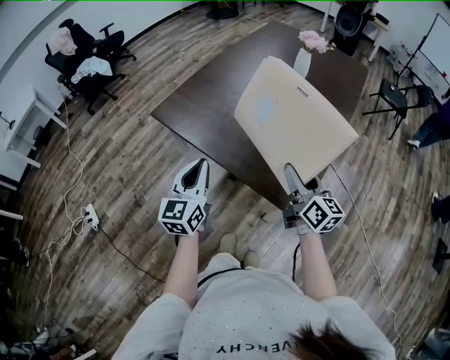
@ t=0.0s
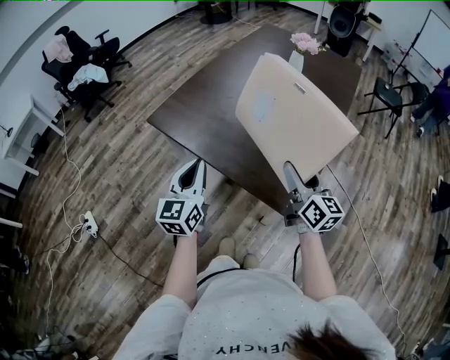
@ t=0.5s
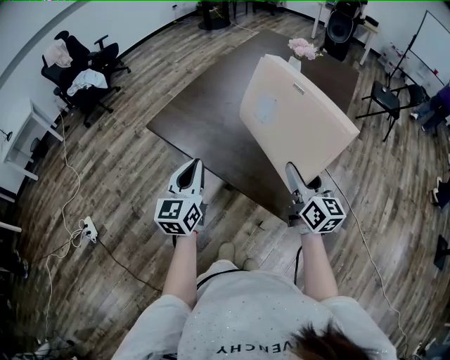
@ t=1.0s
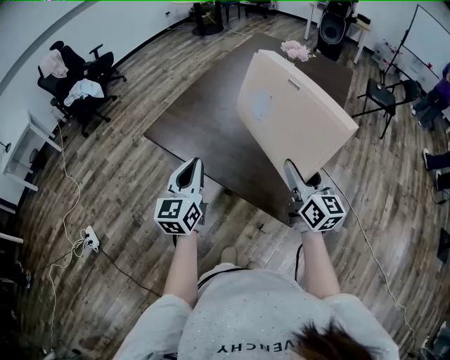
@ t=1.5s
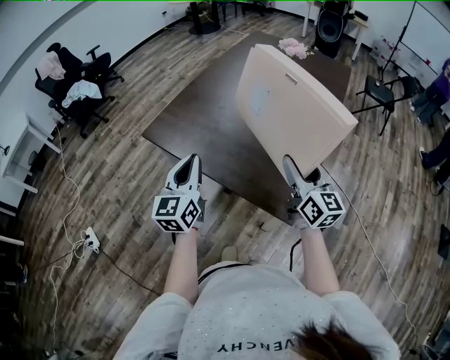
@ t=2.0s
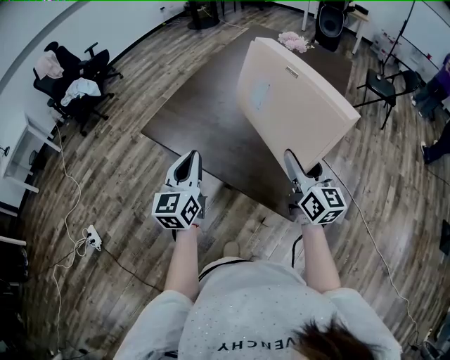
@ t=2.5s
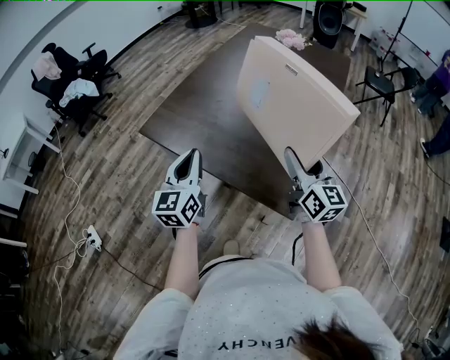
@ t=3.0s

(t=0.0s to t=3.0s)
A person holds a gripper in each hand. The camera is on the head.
t=0.0s - t=1.5s: The right gripper shifts some 5 cm upward.
t=1.5s - t=3.0s: The grippers stay close to where they were, moving slightly.

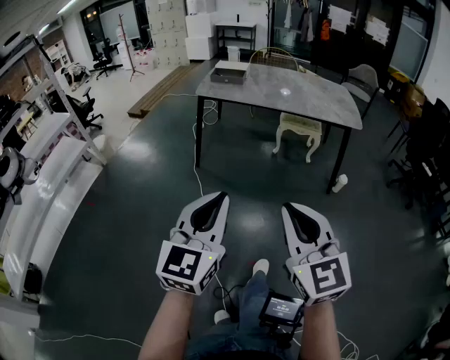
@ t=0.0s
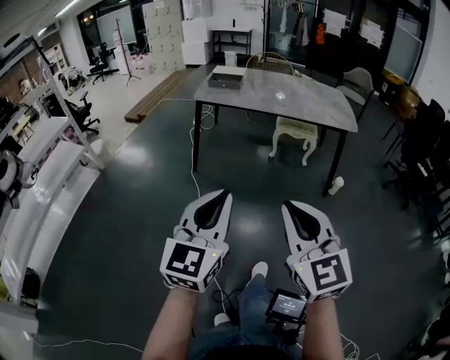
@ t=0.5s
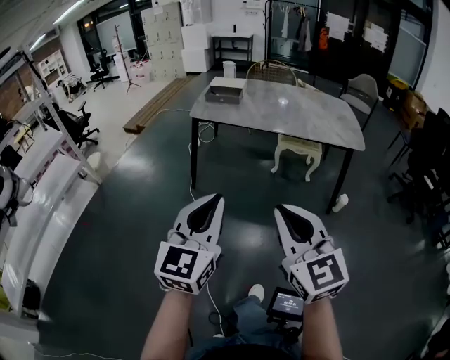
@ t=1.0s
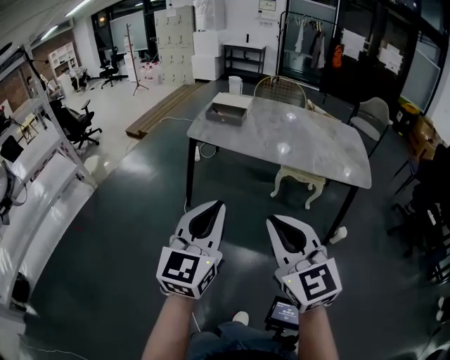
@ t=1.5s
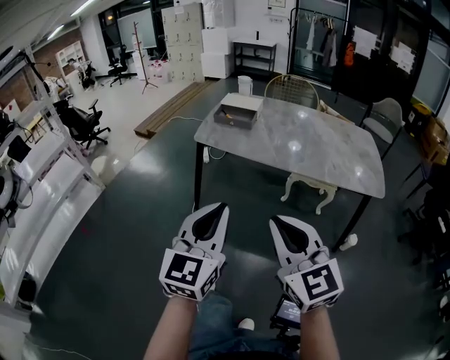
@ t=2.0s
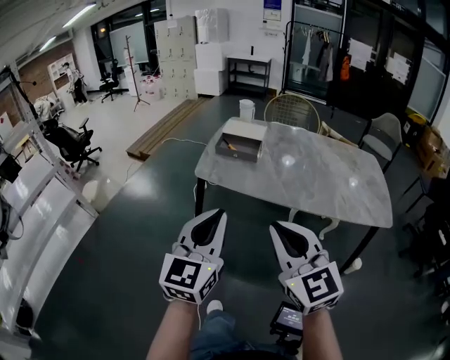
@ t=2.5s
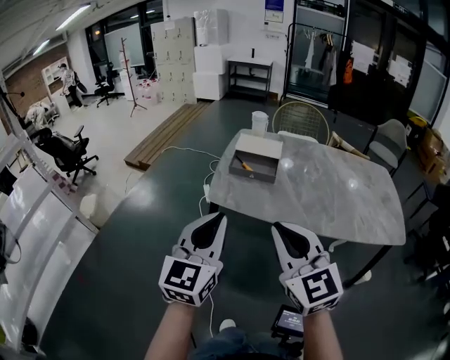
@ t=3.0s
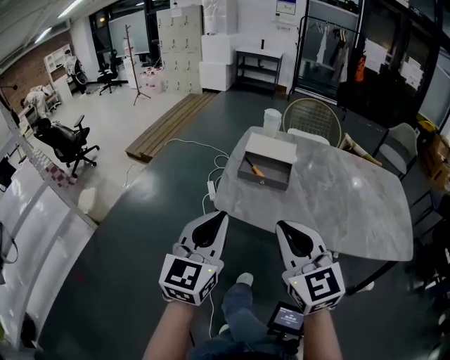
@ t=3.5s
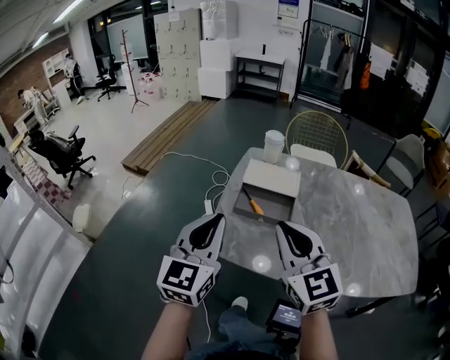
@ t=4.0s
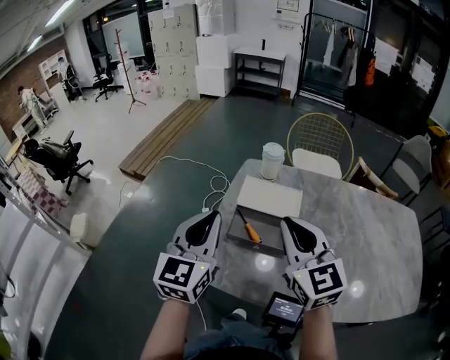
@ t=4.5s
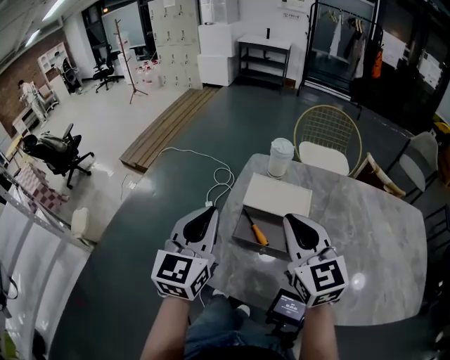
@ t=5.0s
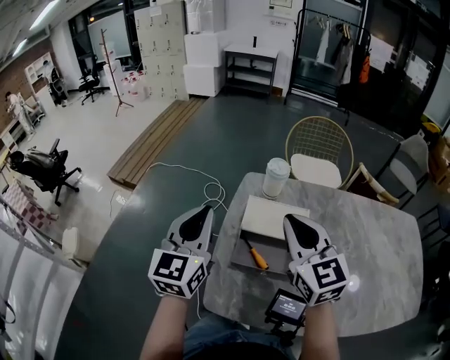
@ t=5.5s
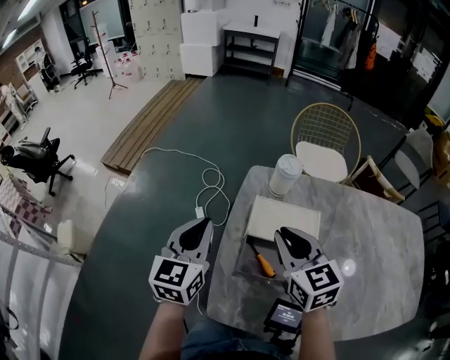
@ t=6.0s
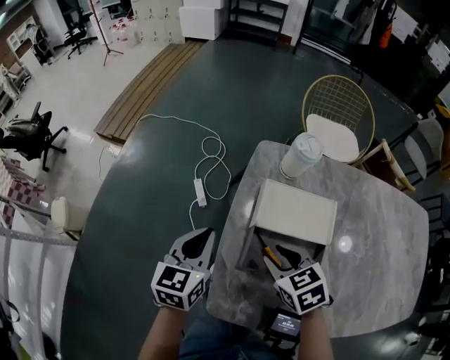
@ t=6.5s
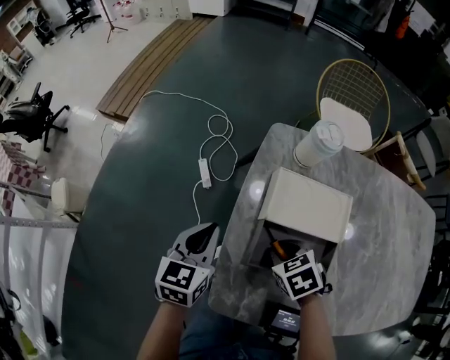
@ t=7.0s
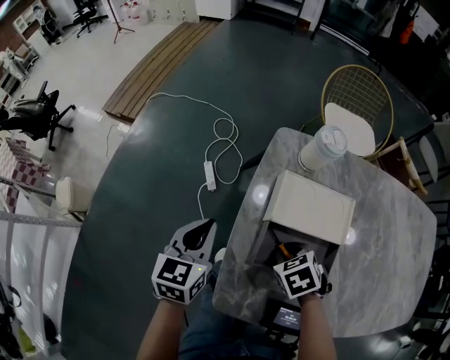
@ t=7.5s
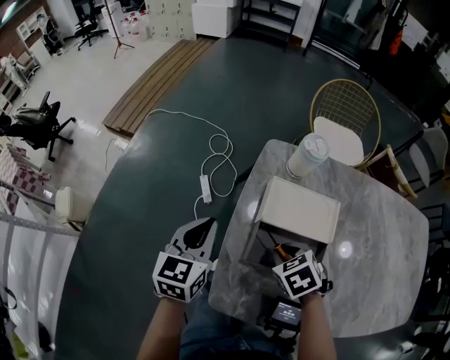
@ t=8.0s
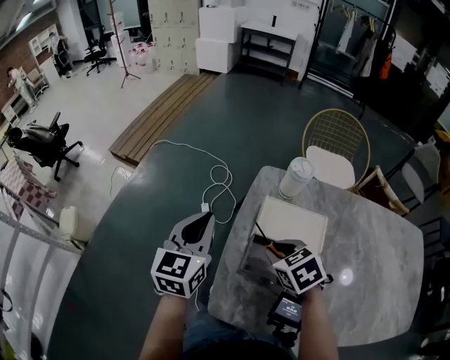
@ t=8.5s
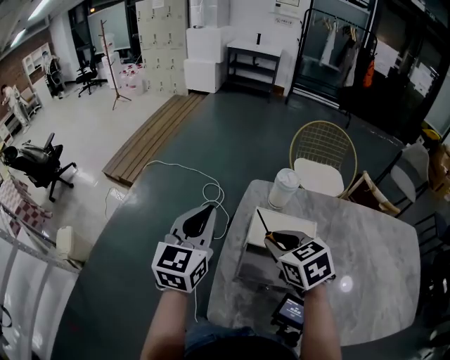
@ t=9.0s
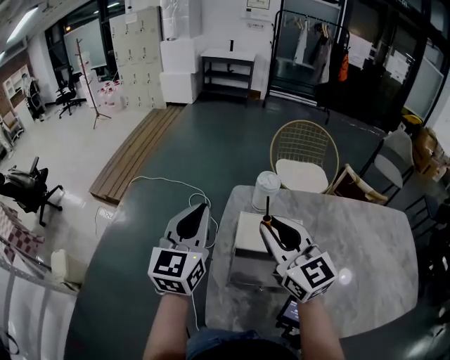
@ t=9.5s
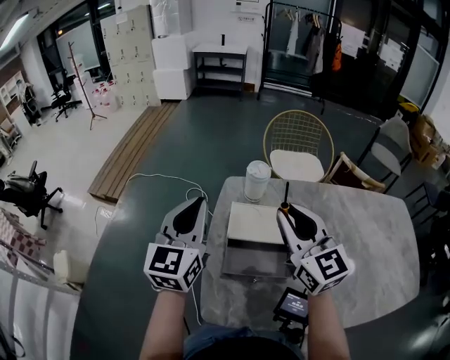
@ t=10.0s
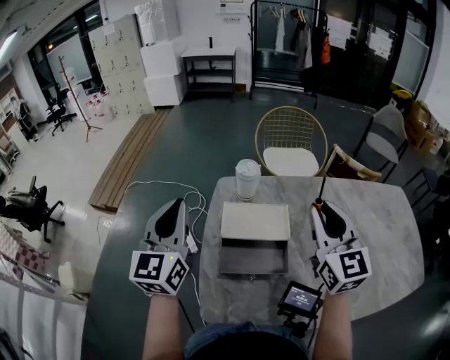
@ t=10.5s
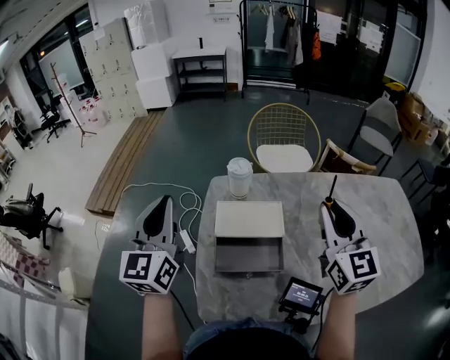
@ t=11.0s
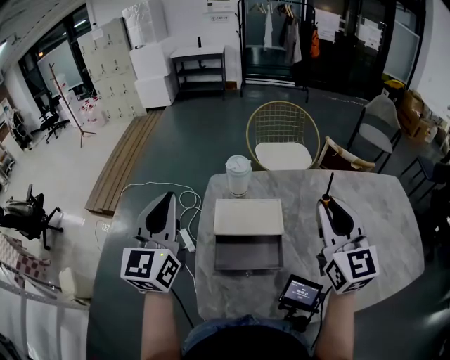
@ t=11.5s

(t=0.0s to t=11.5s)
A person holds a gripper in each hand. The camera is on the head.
t=0.0s - t=2.0s: Both grippers travel together forward, about 30 cm.
t=2.0s - t=4.0s: The pair of grippers is taken forward, approximately 50 cm.
t=4.0s - t=6.0s: The two grippers go approximately 25 cm forward. The right gripper turns by some 20 degrees.
t=6.0s - t=7.5s: The right gripper moves downward, about 20 cm, and tilts its fingers some 50 degrees downward. The left gripper is displaced downward by some 10 cm.
t=7.5s - t=9.5s: Both grippers travel together upward, roughly 25 cm. The right gripper tilts its fingers about 70 degrees upward. The left gripper changes its angle by about 30 degrees.
t=9.5s - t=11.5s: The left gripper ends up some 5 cm from where it was. Meanwhile the right gripper shifts approximately 20 cm to the right, and turns by approximately 30 degrees.

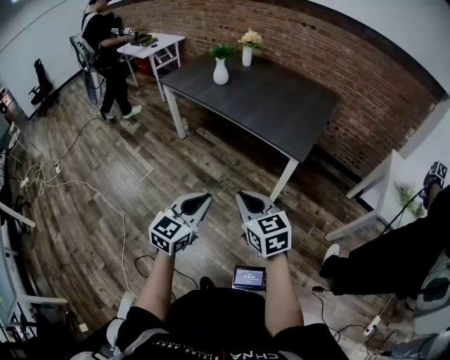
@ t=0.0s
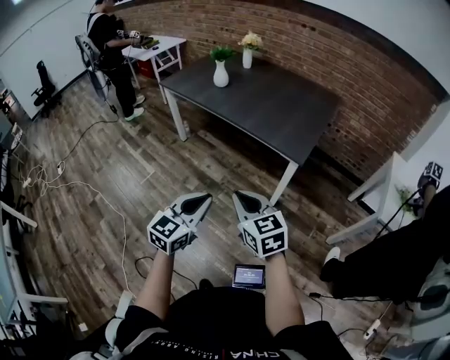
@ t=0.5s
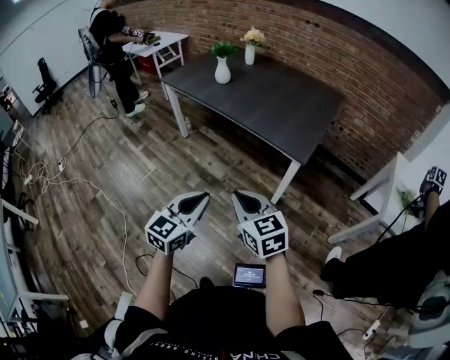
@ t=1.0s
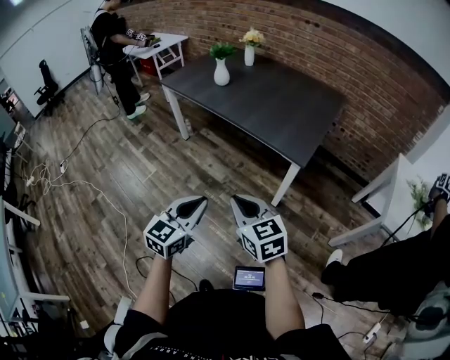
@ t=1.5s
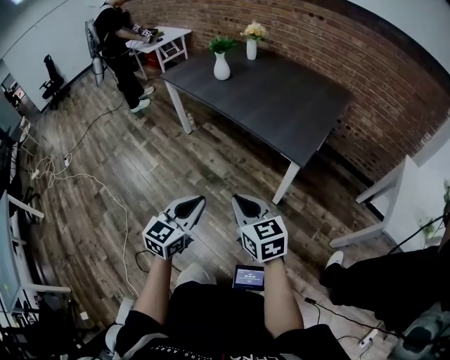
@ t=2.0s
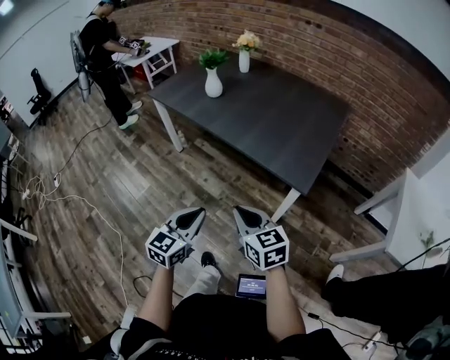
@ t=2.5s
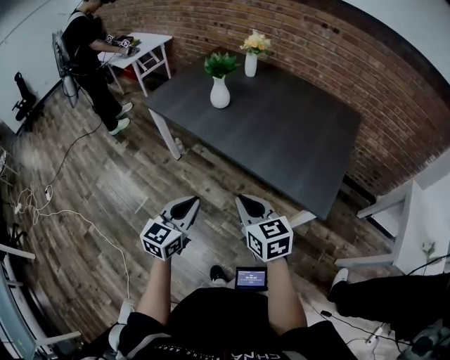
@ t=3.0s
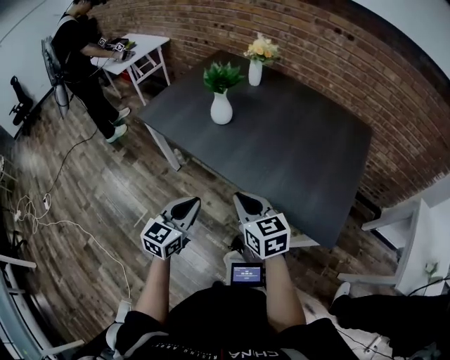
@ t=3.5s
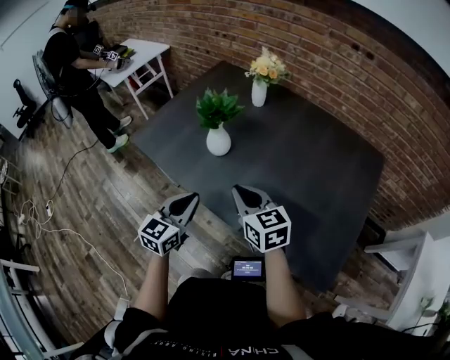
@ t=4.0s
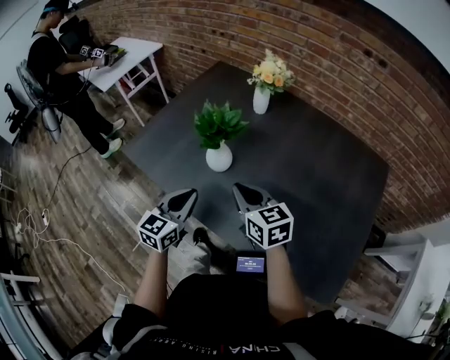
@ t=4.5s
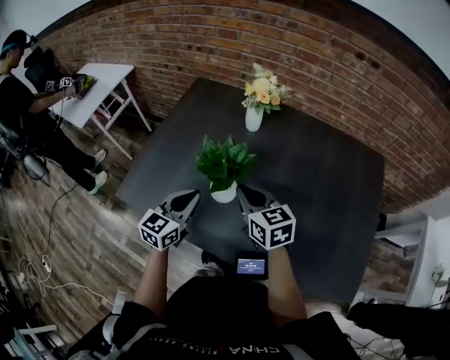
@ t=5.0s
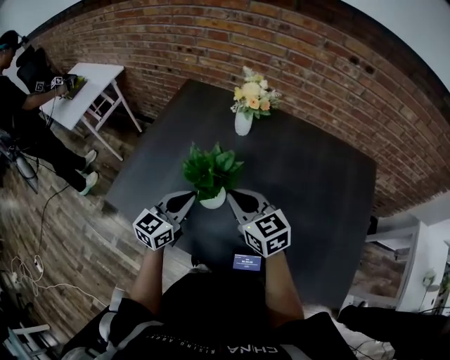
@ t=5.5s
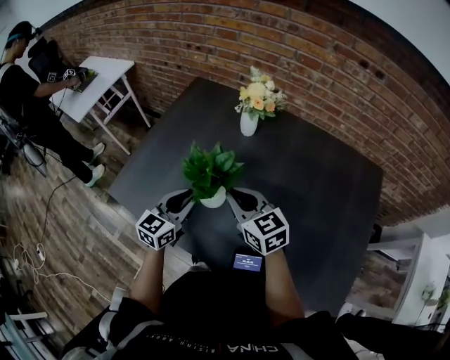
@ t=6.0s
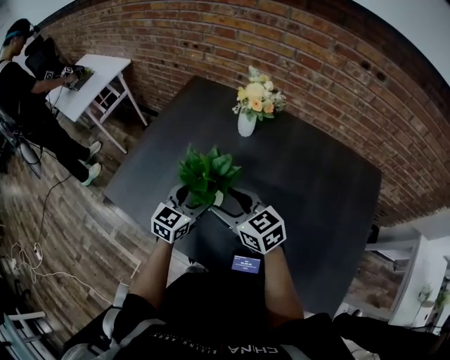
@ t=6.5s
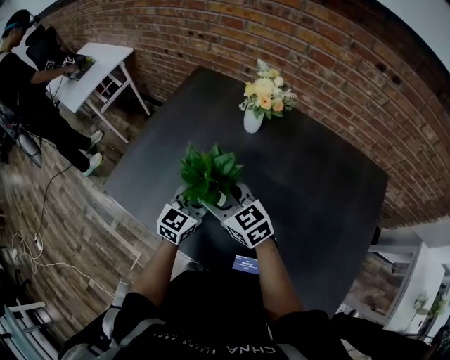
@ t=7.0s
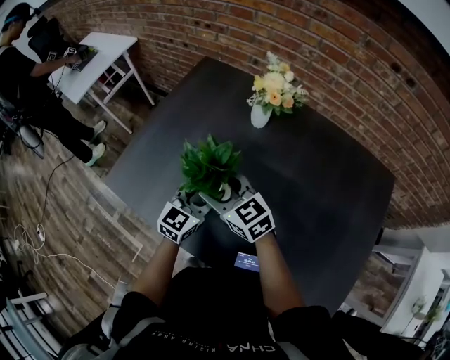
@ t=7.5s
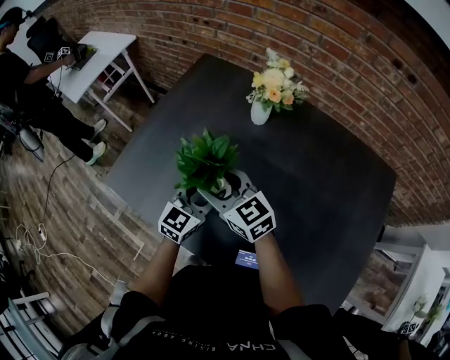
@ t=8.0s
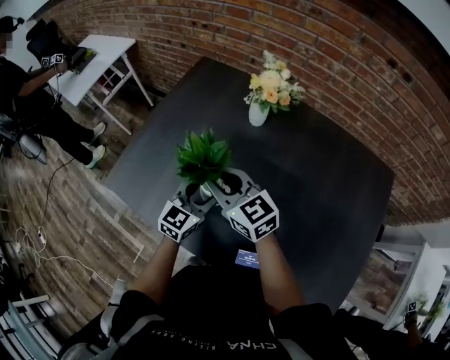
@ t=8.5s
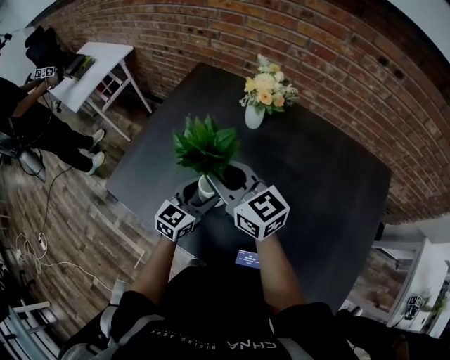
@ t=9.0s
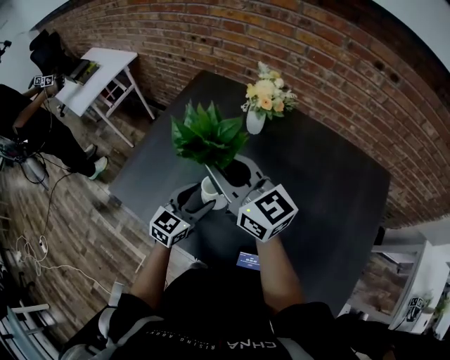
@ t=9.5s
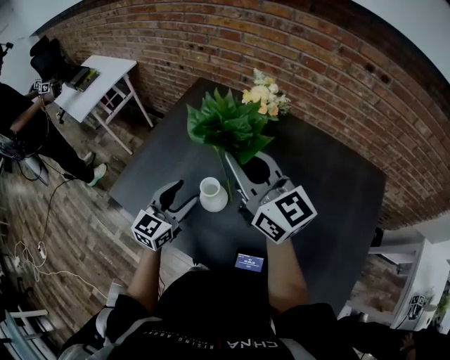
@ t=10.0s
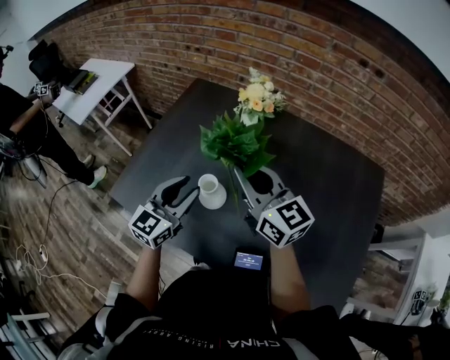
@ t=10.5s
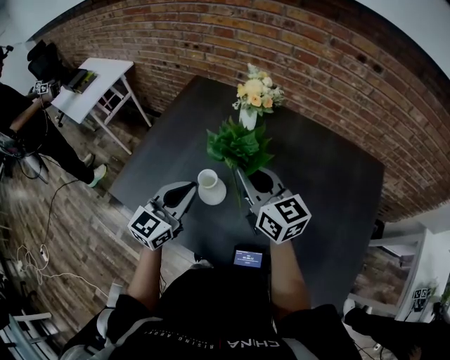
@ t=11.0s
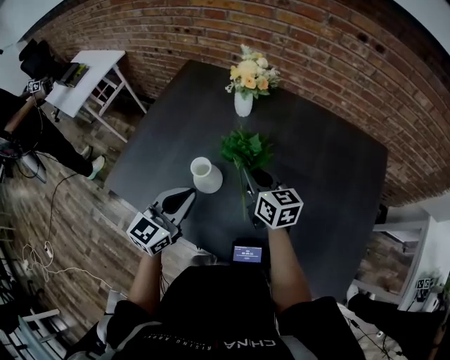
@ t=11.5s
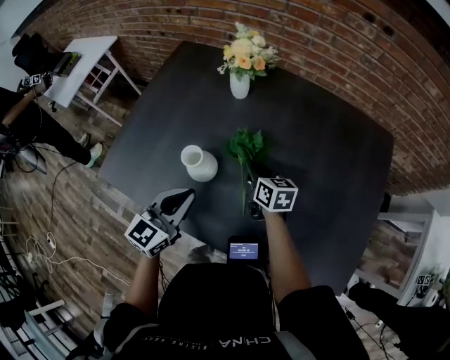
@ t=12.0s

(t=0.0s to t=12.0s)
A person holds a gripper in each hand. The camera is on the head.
t=0.0s - t=2.0s: The grippers both shift to the right and forward by about 10 cm.
t=2.0s - t=4.0s: The pair of grippers is taken forward, some 60 cm.
t=4.0s - t=6.0s: Both grippers move forward, about 25 cm.
t=6.0s - t=8.0s: The left gripper heads to the right, covering some 5 cm, and opens. The right gripper is displaced to the left and forward by some 10 cm, and opens up.
t=8.0s - t=10.0s: The right gripper moves upward, about 20 cm, changes its angle by about 30 degrees, and closes up; the left gripper travels to the left and upward by about 10 cm.
t=10.0s - t=12.0s: The left gripper heads backward and to the right, covering about 10 cm, and closes, while the right gripper goes roughly 35 cm downward, and tilts its fingers roughly 40 degrees downward.
